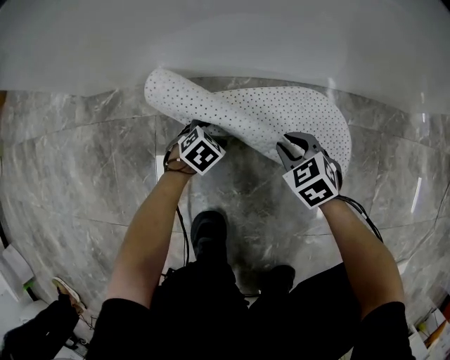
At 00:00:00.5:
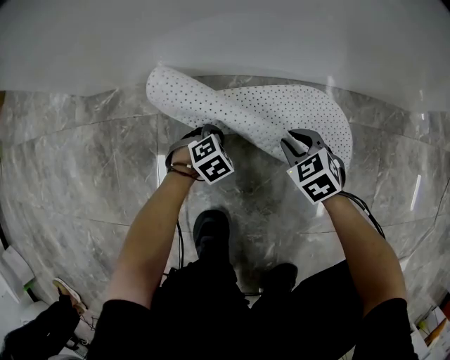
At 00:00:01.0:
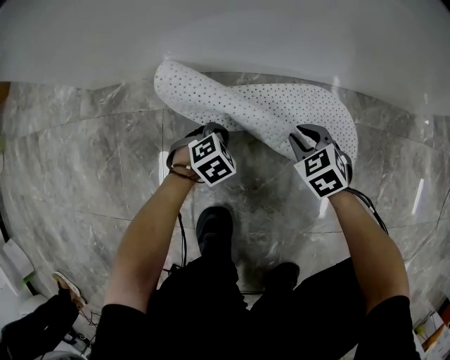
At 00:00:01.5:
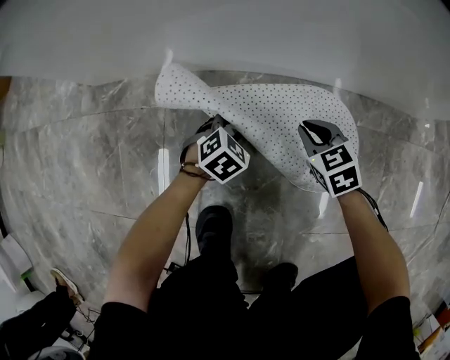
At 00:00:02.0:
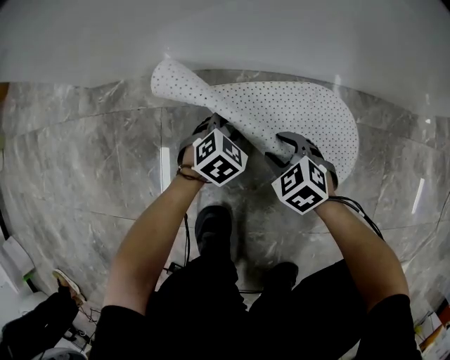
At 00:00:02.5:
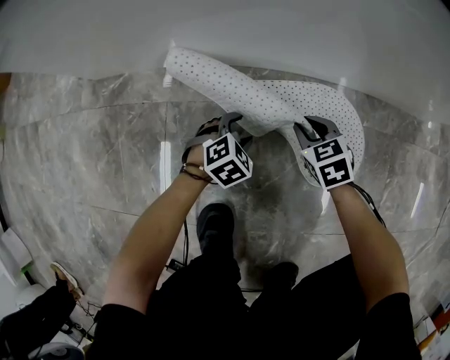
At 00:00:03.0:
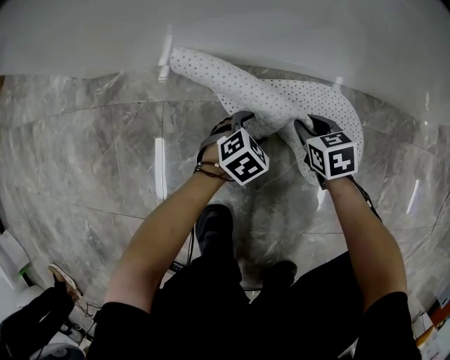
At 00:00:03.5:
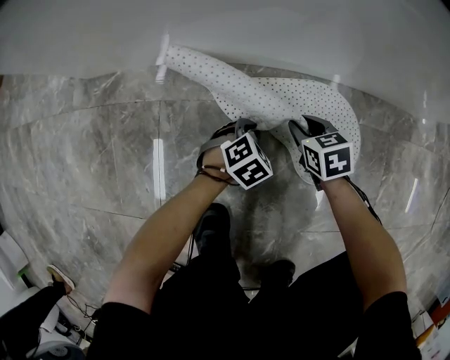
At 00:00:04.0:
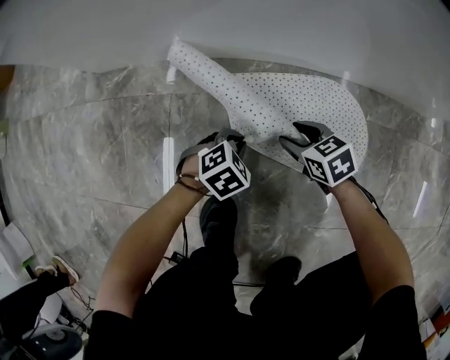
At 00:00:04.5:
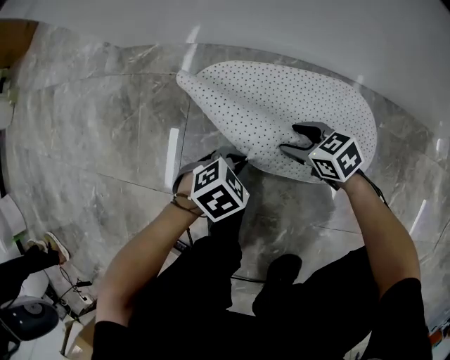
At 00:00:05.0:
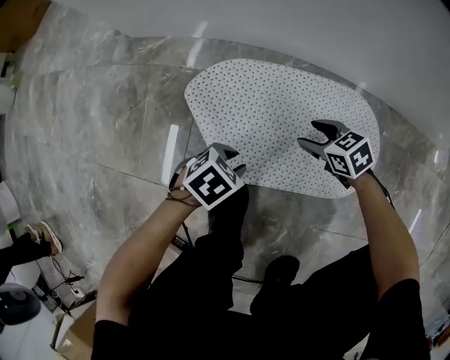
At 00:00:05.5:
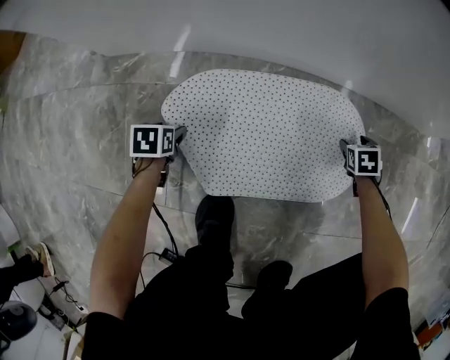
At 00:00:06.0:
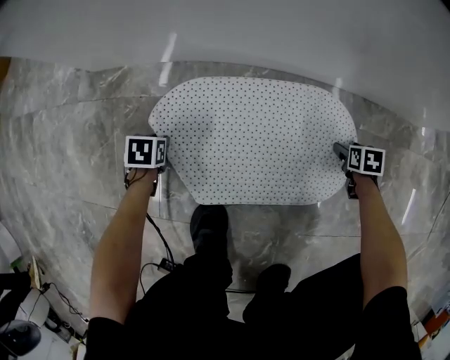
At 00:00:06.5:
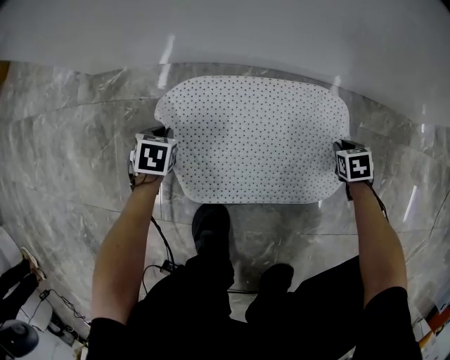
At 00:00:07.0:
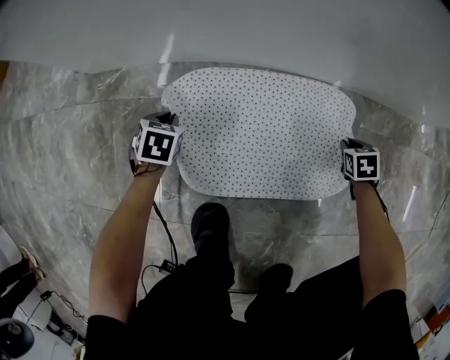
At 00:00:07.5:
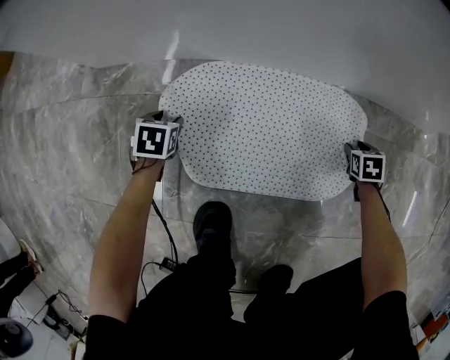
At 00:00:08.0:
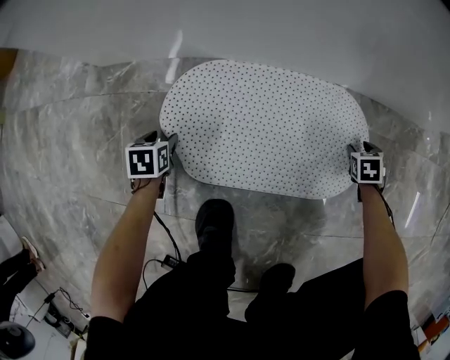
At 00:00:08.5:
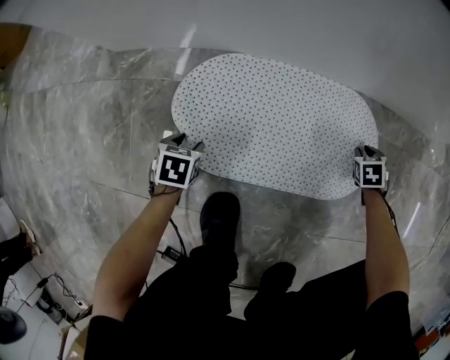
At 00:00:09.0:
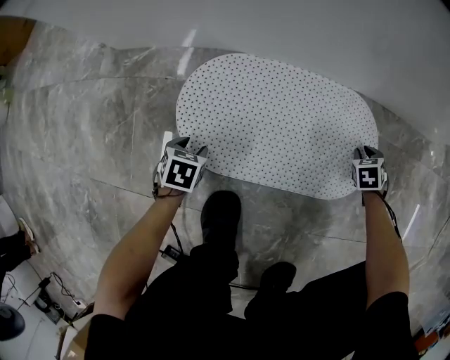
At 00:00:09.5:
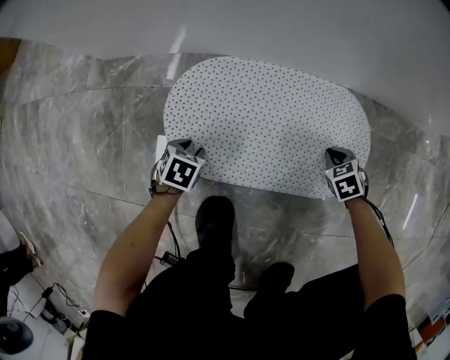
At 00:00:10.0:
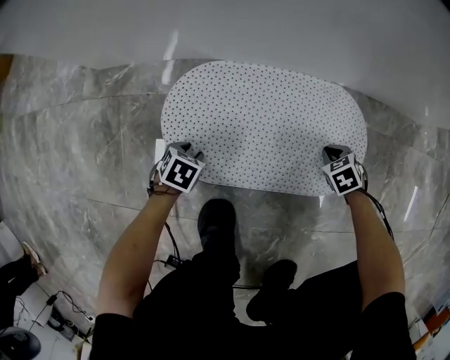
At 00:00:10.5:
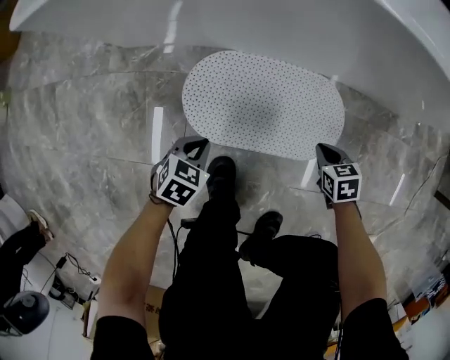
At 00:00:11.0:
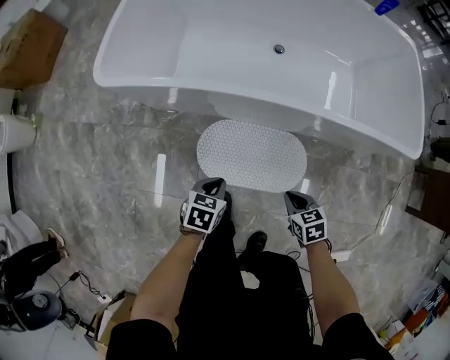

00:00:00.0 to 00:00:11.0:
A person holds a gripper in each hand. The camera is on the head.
00:00:00.0 to 00:00:02.0: The left gripper heads upward, covering some 5 cm, and closes up. The right gripper shifts by some 5 cm, and opens its fingers.
00:00:02.0 to 00:00:03.5: The right gripper travels forward and to the right by approximately 10 cm, changes its angle by some 30 degrees, and closes, while the left gripper shifts by about 5 cm, and opens and closes again.
00:00:03.5 to 00:00:05.5: The right gripper shifts by roughly 20 cm, turns by some 30 degrees, and opens up, while the left gripper goes upward and returns, some 10 cm each way, rotates around the line of its fingers by about 60 degrees, counterclockwise from behind, and opens its fingers.
00:00:05.5 to 00:00:07.5: The left gripper shifts by roughly 5 cm, and closes, then opens again, while the right gripper closes, then reopens.
00:00:07.5 to 00:00:09.0: The left gripper ends up roughly 15 cm from where it was.
00:00:09.0 to 00:00:11.0: The grippers both shift upward by some 60 cm. The right gripper turns by roughly 30 degrees. Meanwhile the left gripper turns by about 20 degrees, and closes its fingers.

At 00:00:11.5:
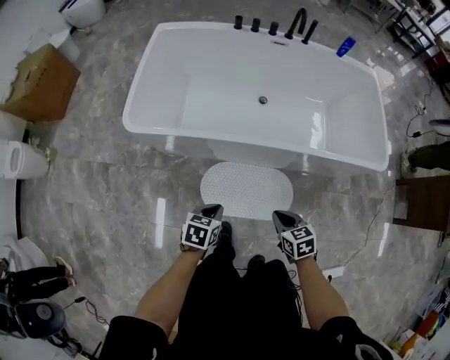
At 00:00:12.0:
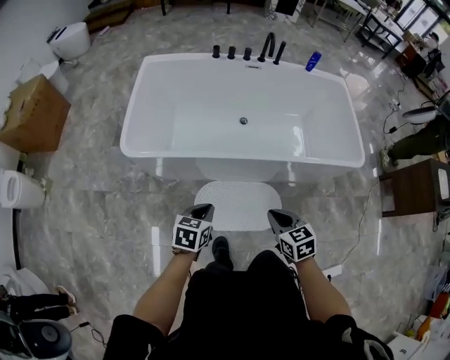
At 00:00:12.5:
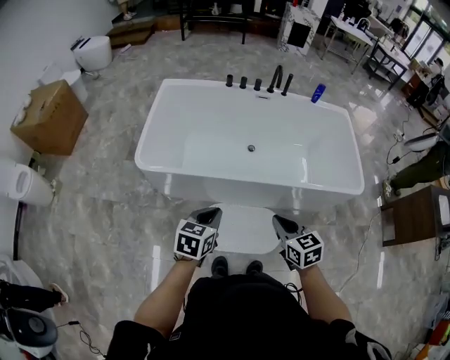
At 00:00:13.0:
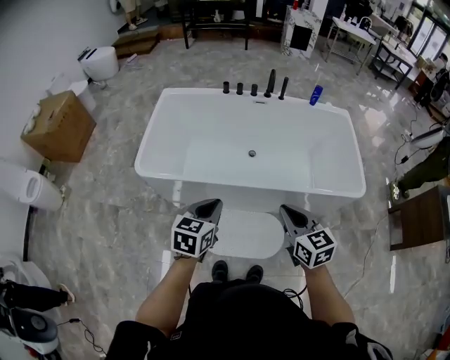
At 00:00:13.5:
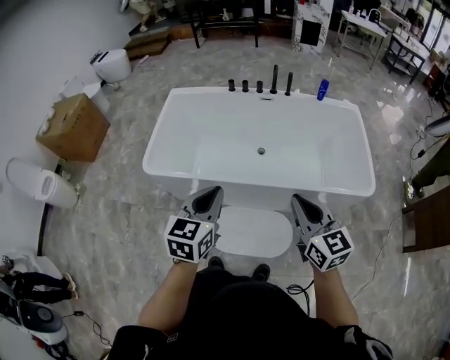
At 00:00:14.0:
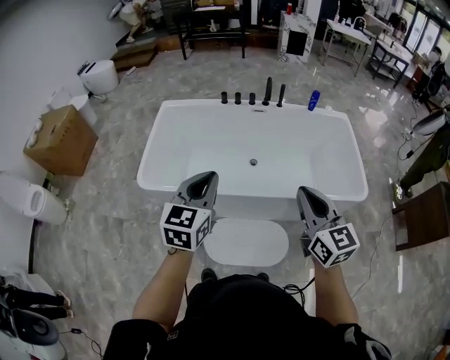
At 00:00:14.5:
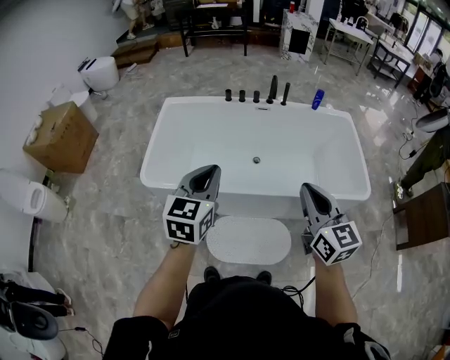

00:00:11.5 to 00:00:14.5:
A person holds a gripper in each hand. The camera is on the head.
00:00:11.5 to 00:00:13.0: Both grippers travel together upward, about 30 cm. The left gripper swivels approximately 30 degrees, while the right gripper points its fingers approximately 30 degrees further upward.
00:00:13.0 to 00:00:14.5: The left gripper goes some 15 cm upward and forward. Meanwhile the right gripper heads upward, covering roughly 10 cm.

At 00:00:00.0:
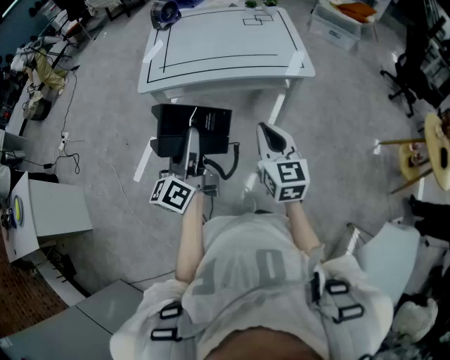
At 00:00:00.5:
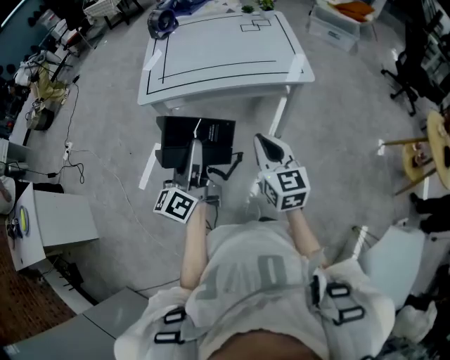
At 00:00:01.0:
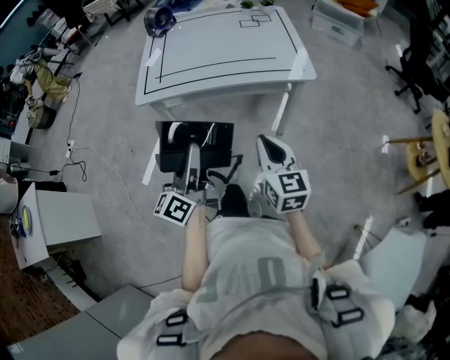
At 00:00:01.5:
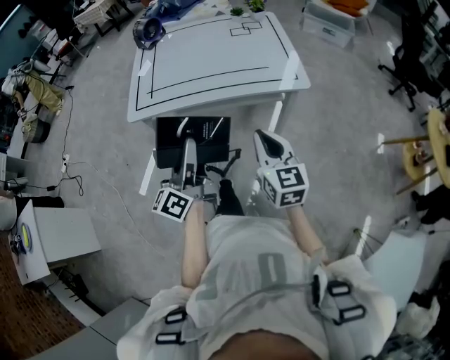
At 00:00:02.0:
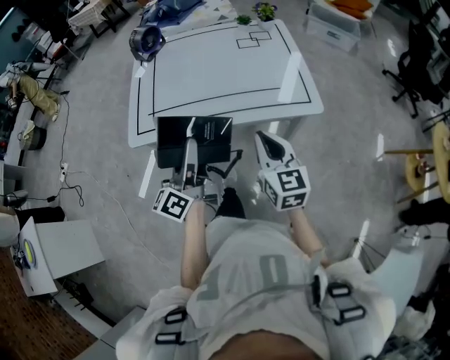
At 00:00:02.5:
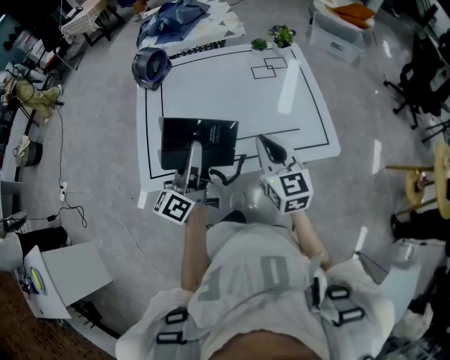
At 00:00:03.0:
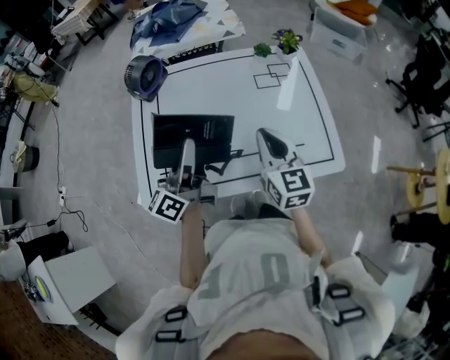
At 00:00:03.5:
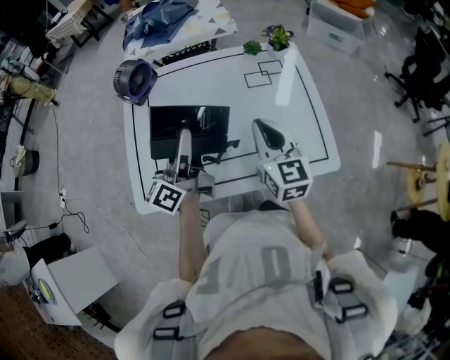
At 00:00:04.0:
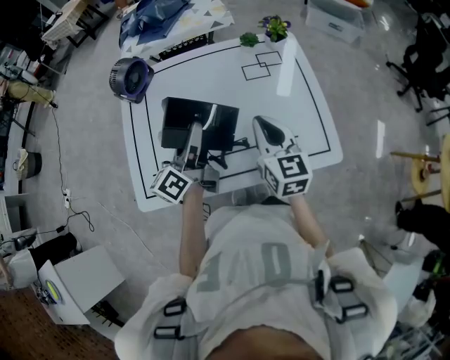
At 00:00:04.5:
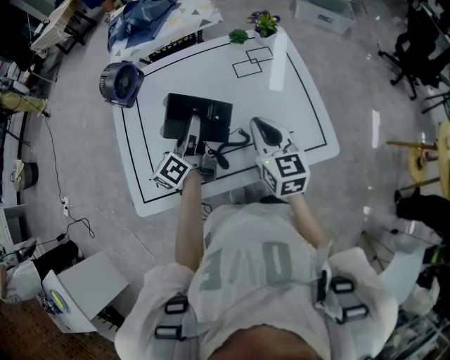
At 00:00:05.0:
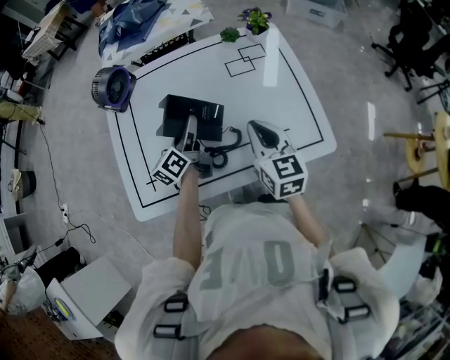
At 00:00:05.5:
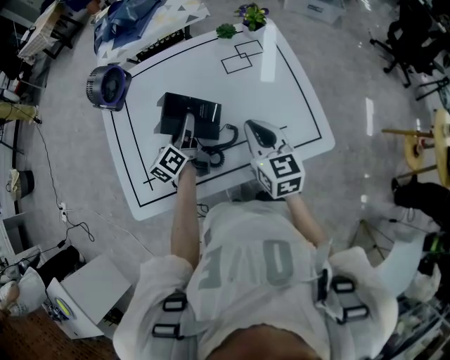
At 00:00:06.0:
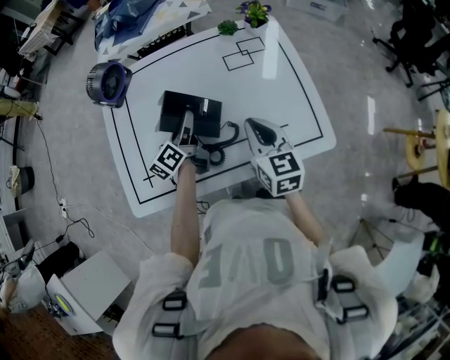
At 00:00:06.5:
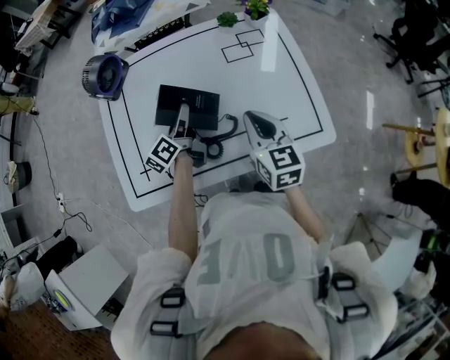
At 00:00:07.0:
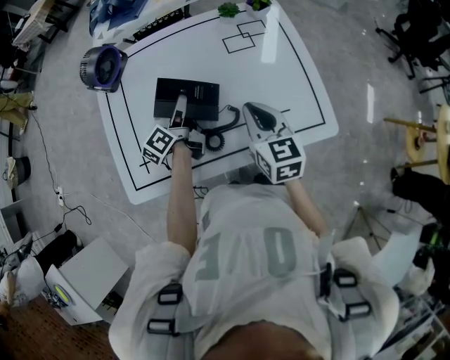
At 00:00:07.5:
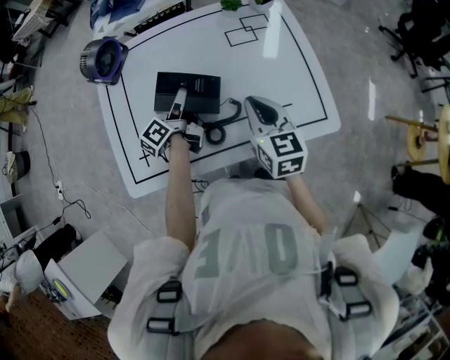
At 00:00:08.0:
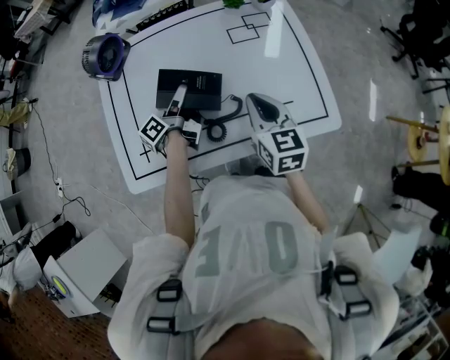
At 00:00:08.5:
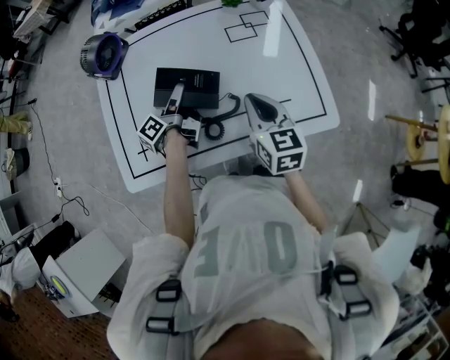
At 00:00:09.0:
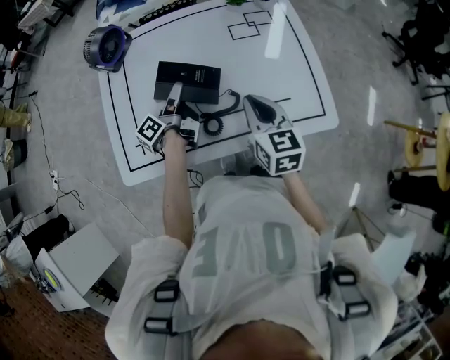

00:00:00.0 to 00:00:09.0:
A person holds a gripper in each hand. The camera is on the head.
00:00:00.0 to 00:00:02.0: Both grippers move forward, some 25 cm.
00:00:02.0 to 00:00:04.5: Both grippers move forward, some 35 cm.
00:00:04.5 to 00:00:07.0: The left gripper goes some 10 cm downward.
00:00:07.0 to 00:00:09.0: The left gripper opens its fingers.

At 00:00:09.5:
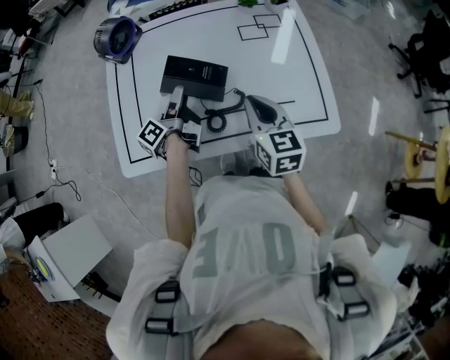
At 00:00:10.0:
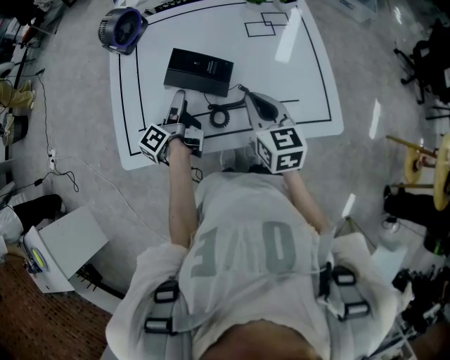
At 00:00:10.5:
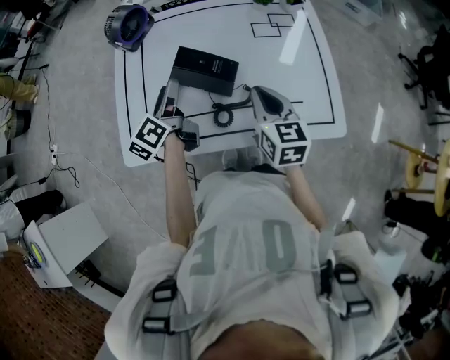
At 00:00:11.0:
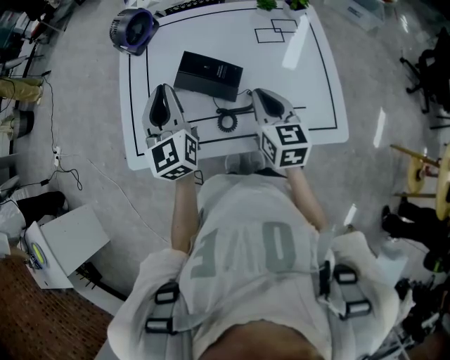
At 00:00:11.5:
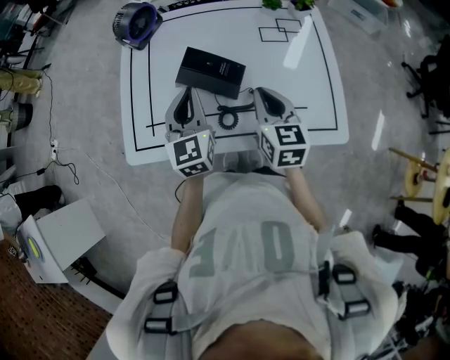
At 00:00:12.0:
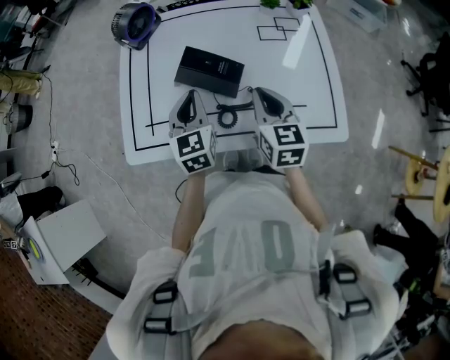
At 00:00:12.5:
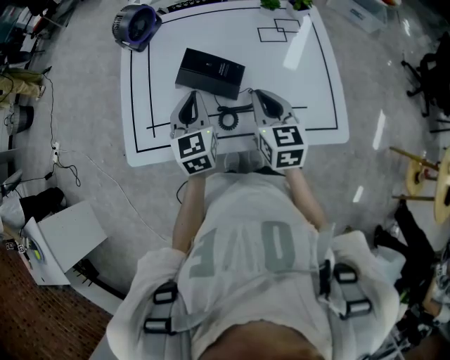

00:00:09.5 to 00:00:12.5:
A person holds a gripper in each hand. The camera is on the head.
00:00:09.5 to 00:00:11.0: The left gripper heads upward, covering approximately 15 cm, twists approximately 80 degrees clockwise, seen from behind, and closes its fingers.
00:00:11.0 to 00:00:12.5: The left gripper is displaced downward by about 10 cm.
